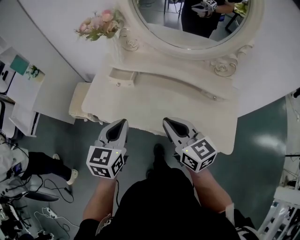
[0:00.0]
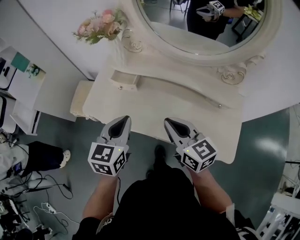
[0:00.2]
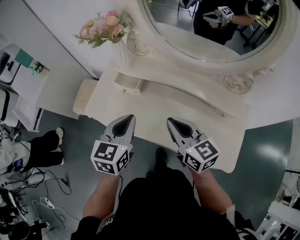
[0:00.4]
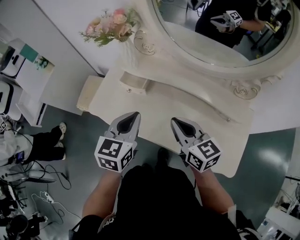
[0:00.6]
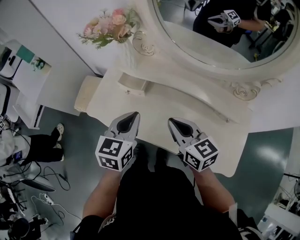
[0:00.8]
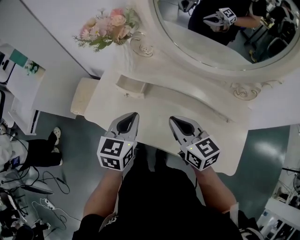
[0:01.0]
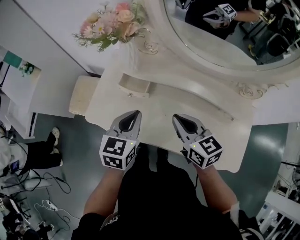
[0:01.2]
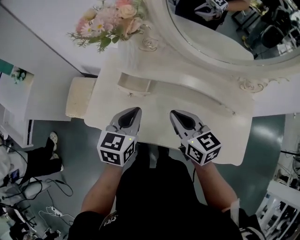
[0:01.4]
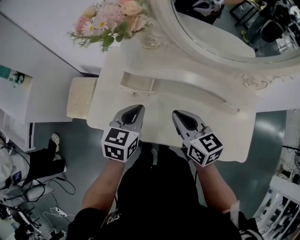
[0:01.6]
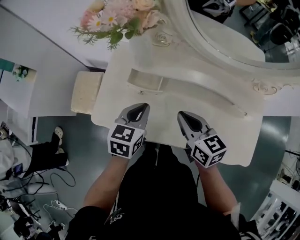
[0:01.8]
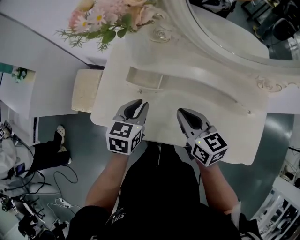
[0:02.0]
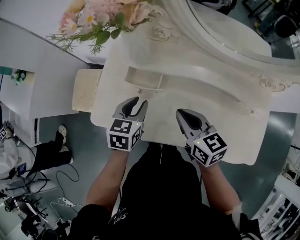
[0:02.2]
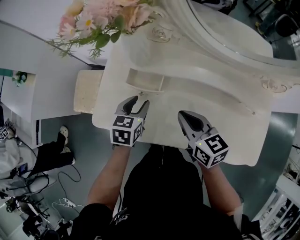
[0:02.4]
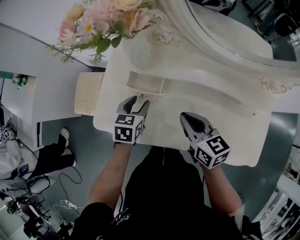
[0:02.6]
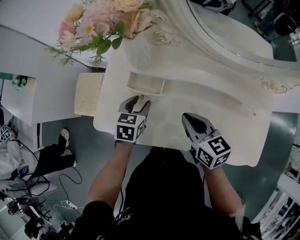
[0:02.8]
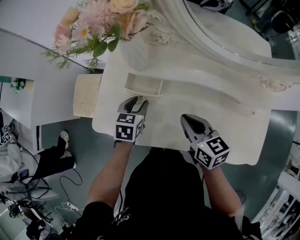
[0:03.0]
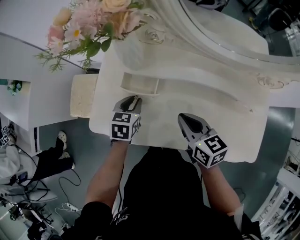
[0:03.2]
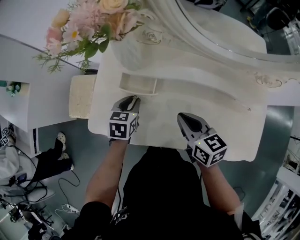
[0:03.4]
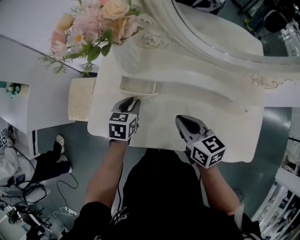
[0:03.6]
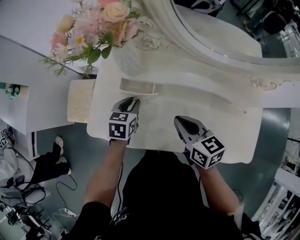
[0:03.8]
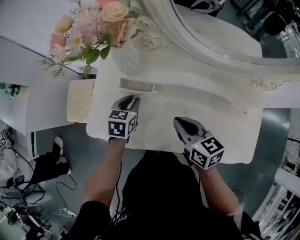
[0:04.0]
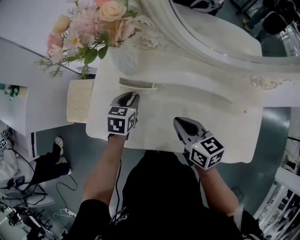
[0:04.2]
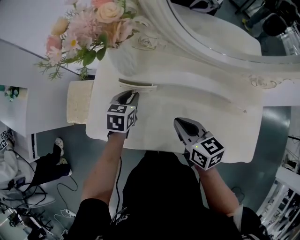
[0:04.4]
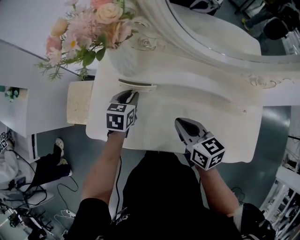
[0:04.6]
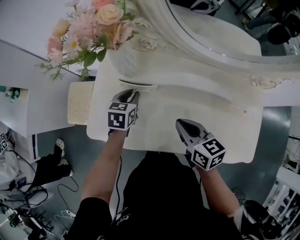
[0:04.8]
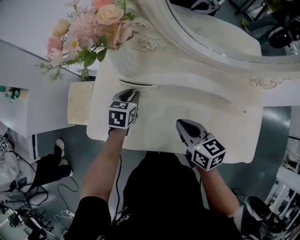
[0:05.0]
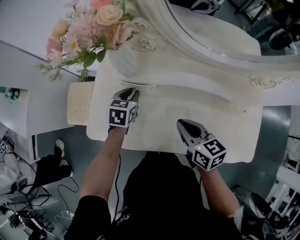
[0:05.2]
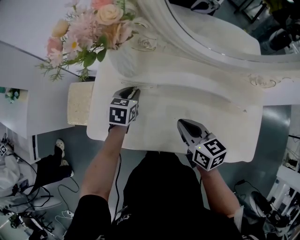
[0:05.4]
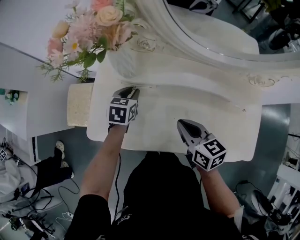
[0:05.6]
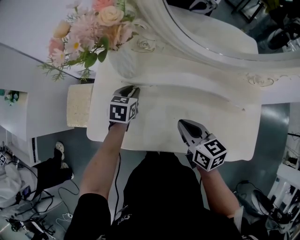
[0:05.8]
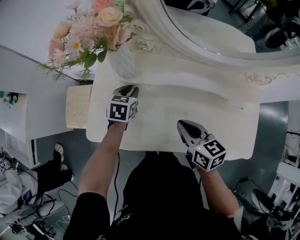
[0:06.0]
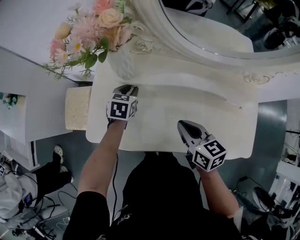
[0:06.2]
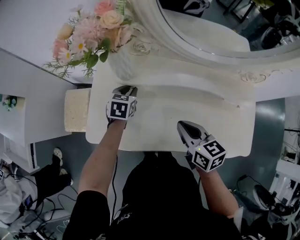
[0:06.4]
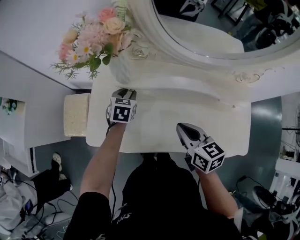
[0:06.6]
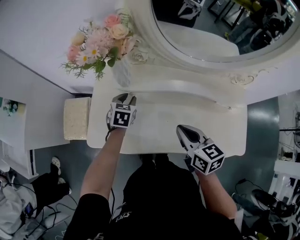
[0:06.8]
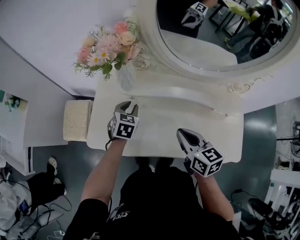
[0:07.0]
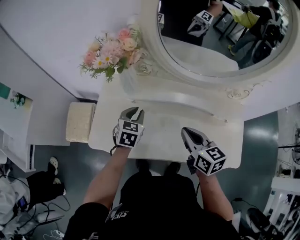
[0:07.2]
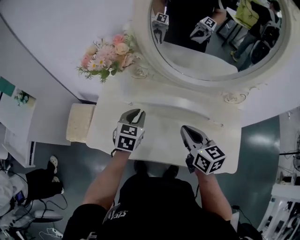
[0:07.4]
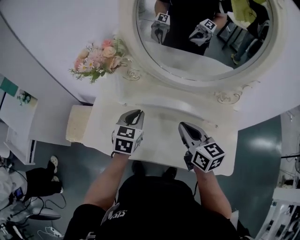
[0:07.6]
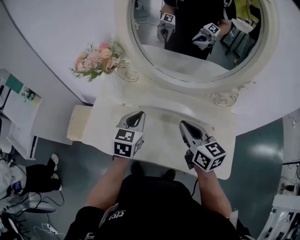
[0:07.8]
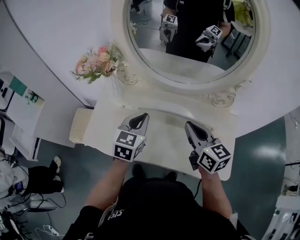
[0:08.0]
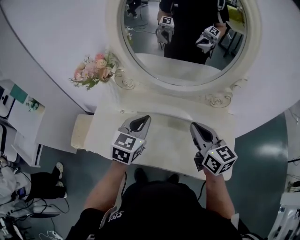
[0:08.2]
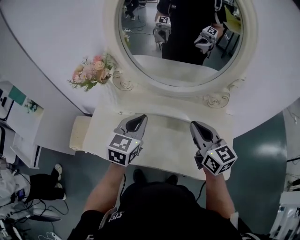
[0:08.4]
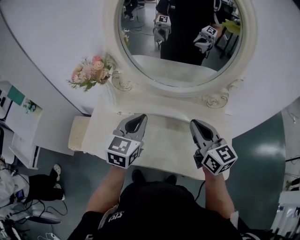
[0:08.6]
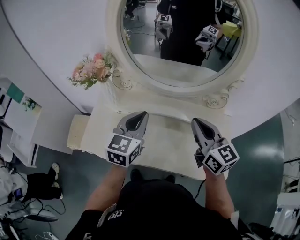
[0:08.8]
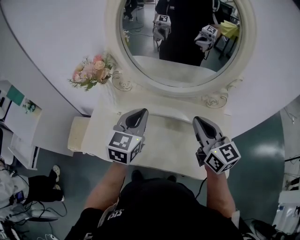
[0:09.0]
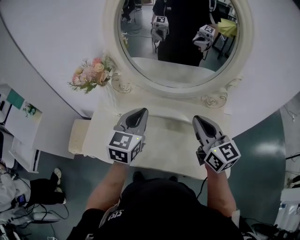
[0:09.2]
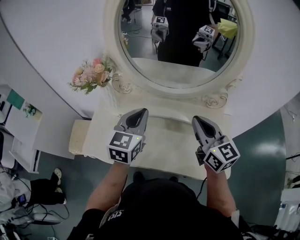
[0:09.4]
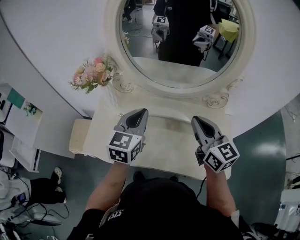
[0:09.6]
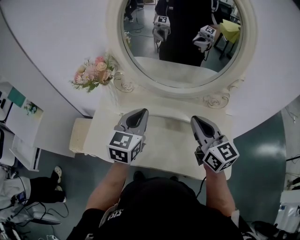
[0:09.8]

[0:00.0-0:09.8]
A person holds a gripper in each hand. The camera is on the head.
0:00.0 to 0:01.4: The left gripper shifts approximately 15 cm forward. The right gripper travels forward and downward by about 20 cm.
0:01.4 to 0:02.8: The left gripper shifts some 15 cm downward and forward, and opens; the right gripper is displaced downward by roughly 5 cm.
0:02.8 to 0:04.2: The left gripper closes.
0:04.2 to 0:05.6: There are only small adjustments of the grippers.
0:05.6 to 0:07.0: The left gripper moves approximately 5 cm, while the right gripper heads upward, covering roughly 5 cm.
0:07.0 to 0:08.4: The right gripper travels to the right and upward by roughly 20 cm, and changes its angle by roughly 20 degrees. Meanwhile the left gripper moves upward, to the right and backward, roughly 30 cm, turns by roughly 20 degrees, and closes up.
0:08.4 to 0:09.8: The grippers stay close to where they were, moving slightly.

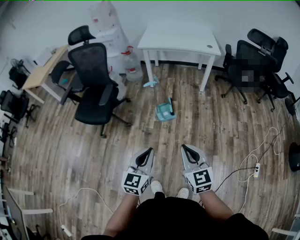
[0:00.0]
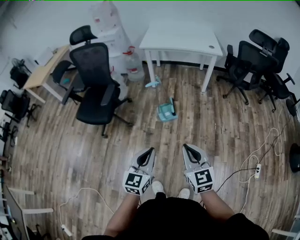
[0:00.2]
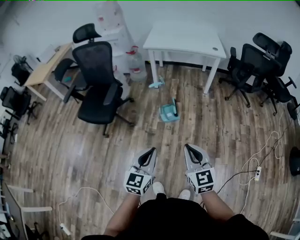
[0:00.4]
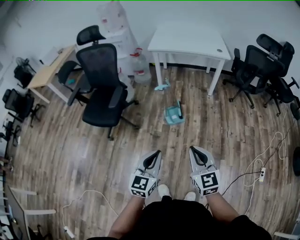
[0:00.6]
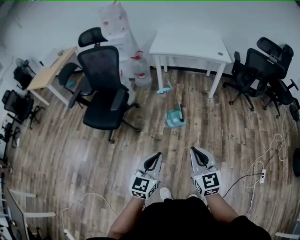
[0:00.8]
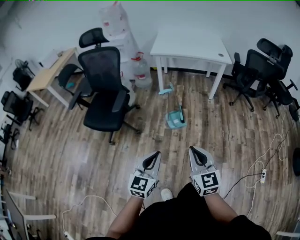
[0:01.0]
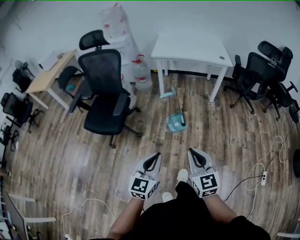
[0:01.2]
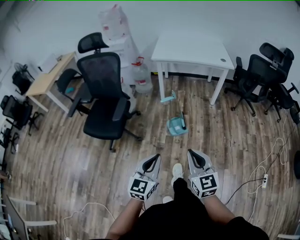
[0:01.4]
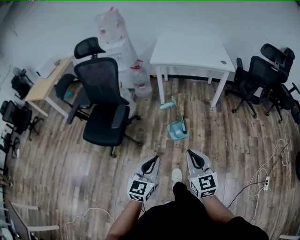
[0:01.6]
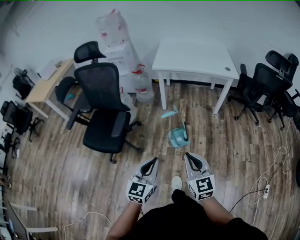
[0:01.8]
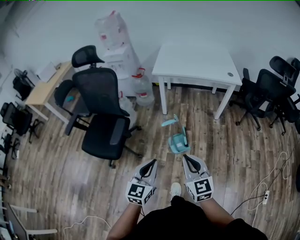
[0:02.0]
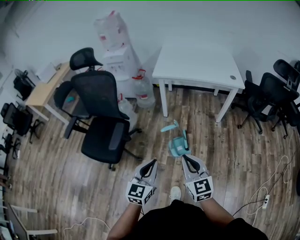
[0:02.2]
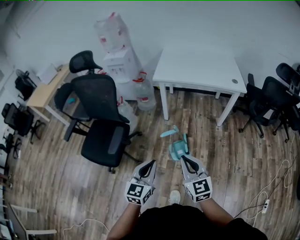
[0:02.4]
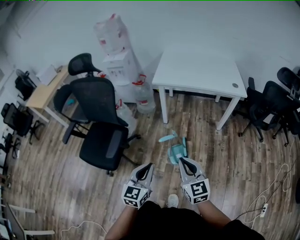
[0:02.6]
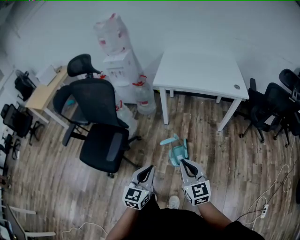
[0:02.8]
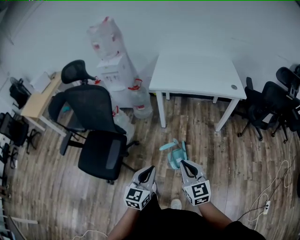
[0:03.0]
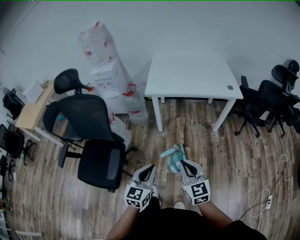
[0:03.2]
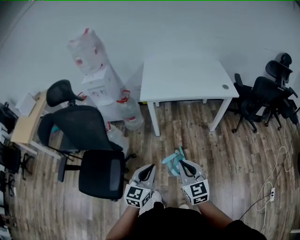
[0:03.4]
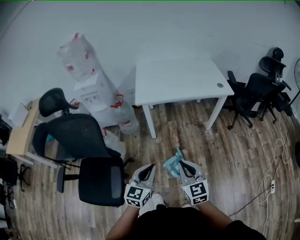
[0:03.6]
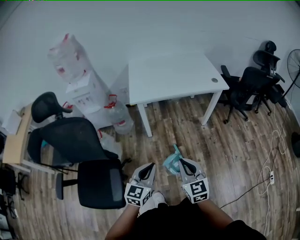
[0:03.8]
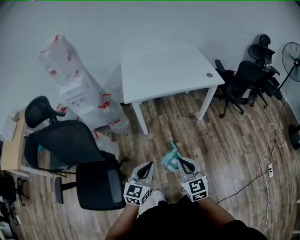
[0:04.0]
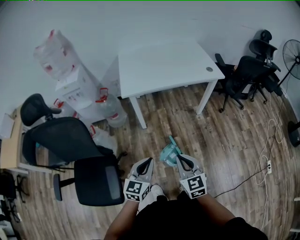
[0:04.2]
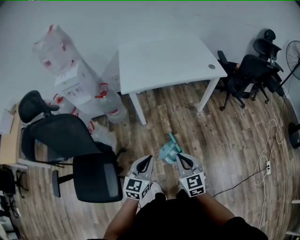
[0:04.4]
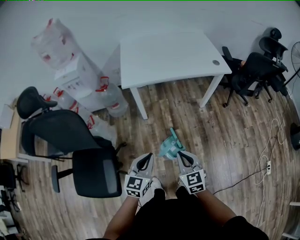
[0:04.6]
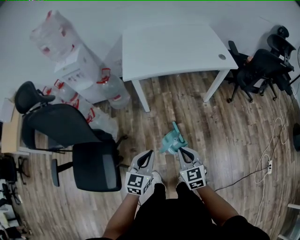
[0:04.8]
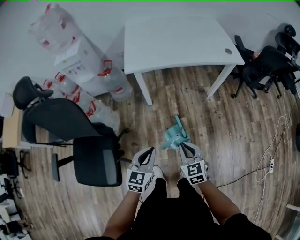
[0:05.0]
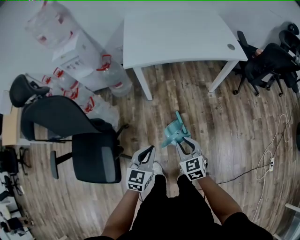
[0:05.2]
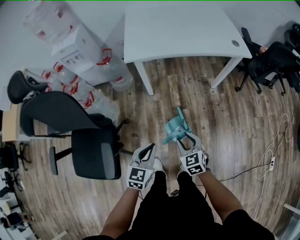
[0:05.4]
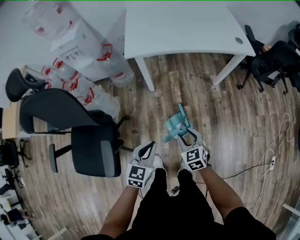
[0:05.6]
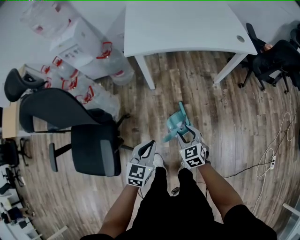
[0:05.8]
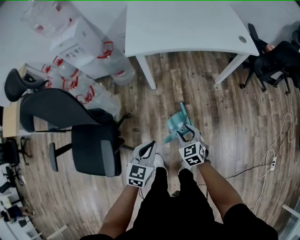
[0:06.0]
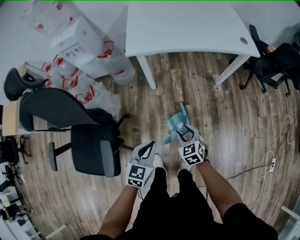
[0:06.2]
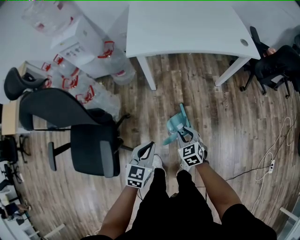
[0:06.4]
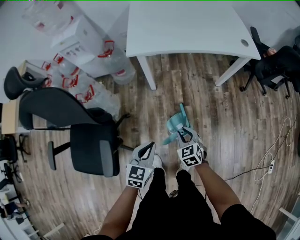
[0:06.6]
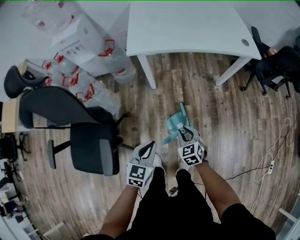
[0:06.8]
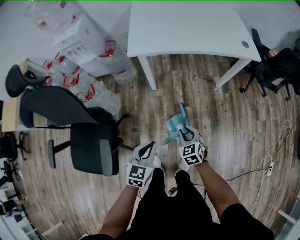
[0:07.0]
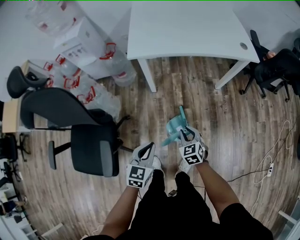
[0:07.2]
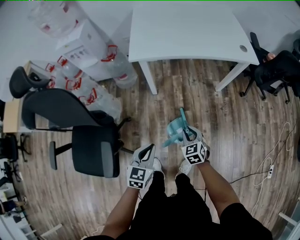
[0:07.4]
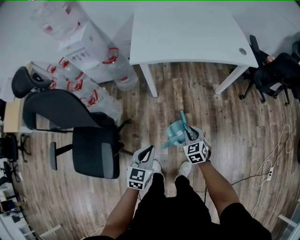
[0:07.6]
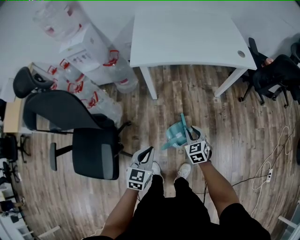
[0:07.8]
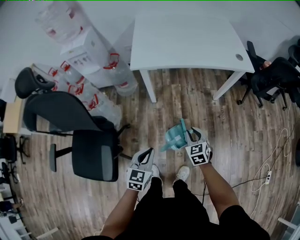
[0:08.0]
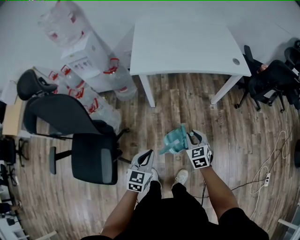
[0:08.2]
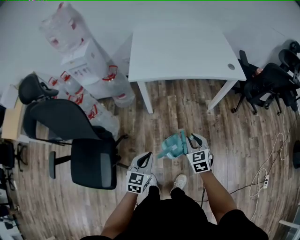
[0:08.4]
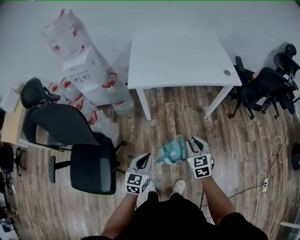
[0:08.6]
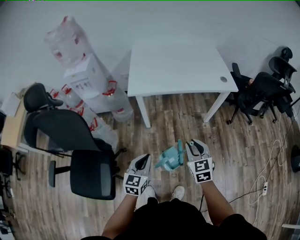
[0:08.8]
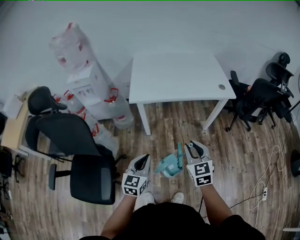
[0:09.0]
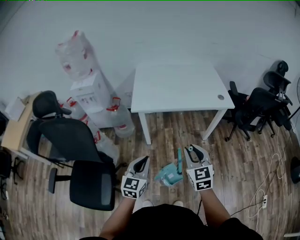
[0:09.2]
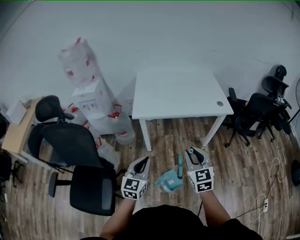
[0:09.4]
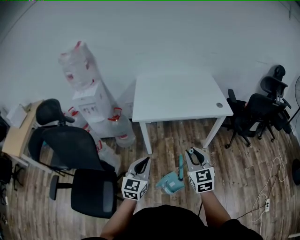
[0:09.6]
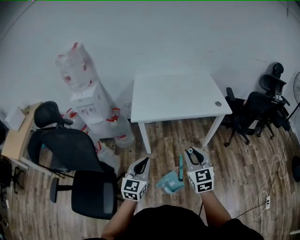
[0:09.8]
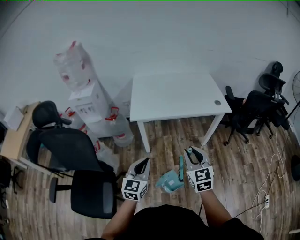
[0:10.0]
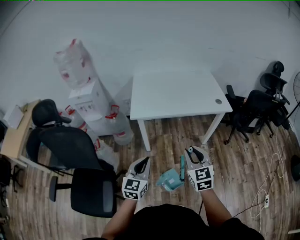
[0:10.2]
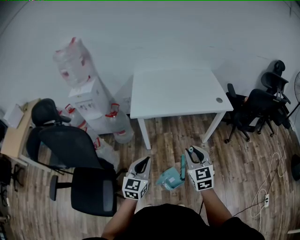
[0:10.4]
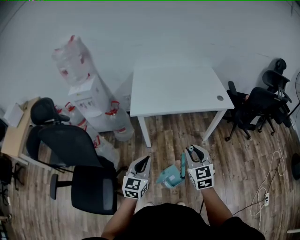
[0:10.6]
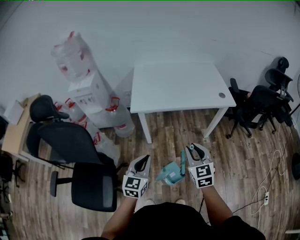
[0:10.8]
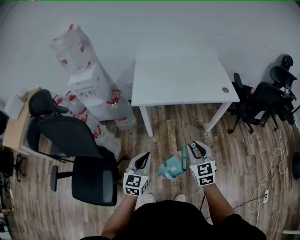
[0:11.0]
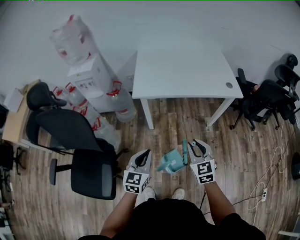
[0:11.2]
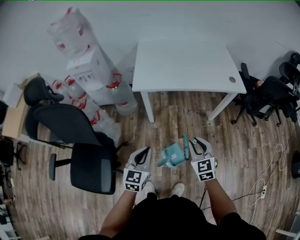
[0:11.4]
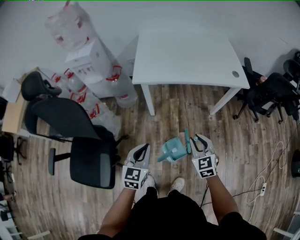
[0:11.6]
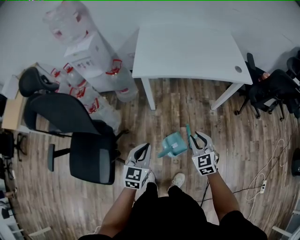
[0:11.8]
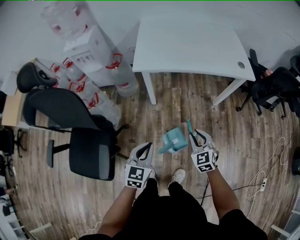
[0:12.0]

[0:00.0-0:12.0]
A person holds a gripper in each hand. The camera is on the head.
0:00.0 to 0:01.6: Both grippers move forward and to the left, about 15 cm.
0:01.6 to 0:03.0: The grippers both shift forward by approximately 25 cm.
0:03.0 to 0:04.4: The left gripper moves forward, some 15 cm, and turns by about 20 degrees. The right gripper goes some 15 cm forward, to the left and downward, and swivels some 20 degrees.
0:04.4 to 0:06.0: The left gripper heads downward, covering approximately 10 cm. Meanwhile the right gripper travels downward and forward by approximately 20 cm, rotates roughly 20 degrees, and opens.
0:06.0 to 0:07.6: The right gripper moves roughly 5 cm, and closes.
0:07.6 to 0:09.0: The right gripper is displaced upward by about 25 cm, and swivels approximately 20 degrees; the left gripper moves upward and forward, roughly 10 cm.
0:09.0 to 0:10.4: The left gripper moves some 5 cm.
0:10.4 to 0:12.0: The left gripper is displaced downward by about 10 cm. The right gripper travels downward by roughly 20 cm, and turns by approximately 20 degrees.

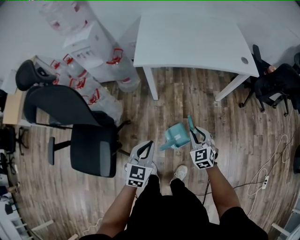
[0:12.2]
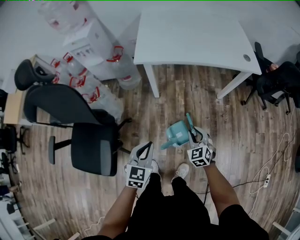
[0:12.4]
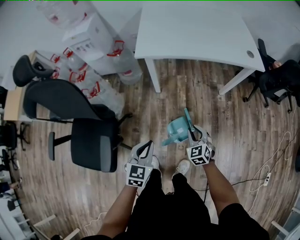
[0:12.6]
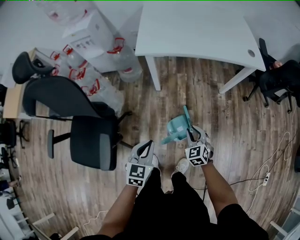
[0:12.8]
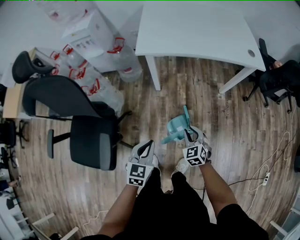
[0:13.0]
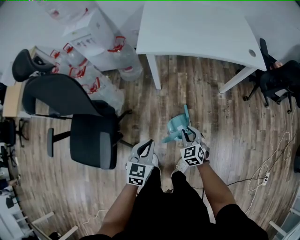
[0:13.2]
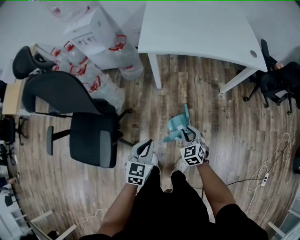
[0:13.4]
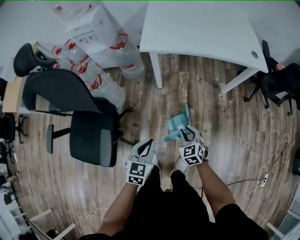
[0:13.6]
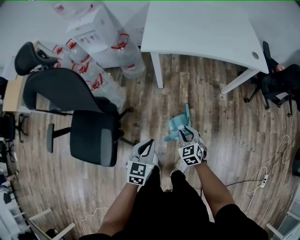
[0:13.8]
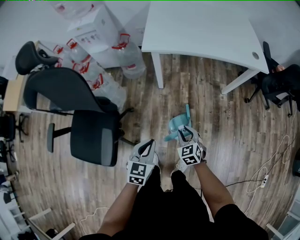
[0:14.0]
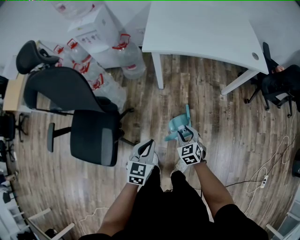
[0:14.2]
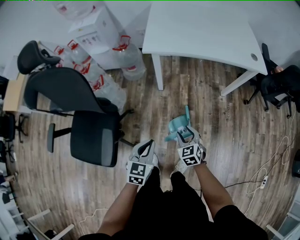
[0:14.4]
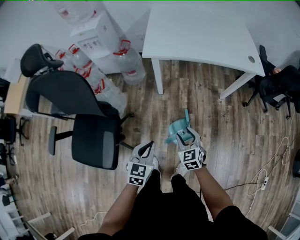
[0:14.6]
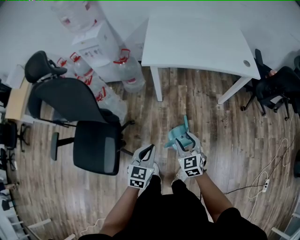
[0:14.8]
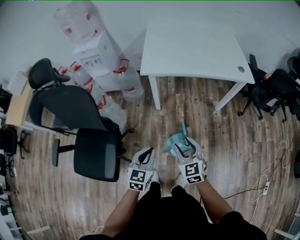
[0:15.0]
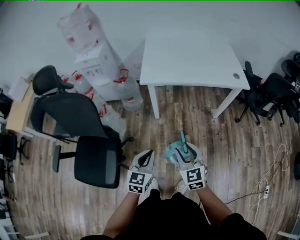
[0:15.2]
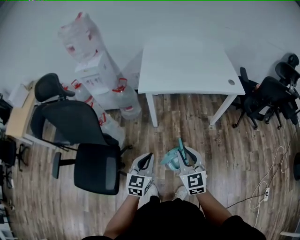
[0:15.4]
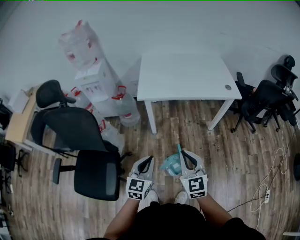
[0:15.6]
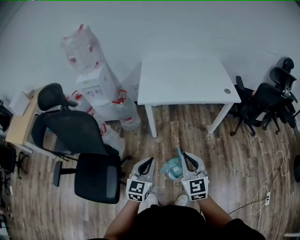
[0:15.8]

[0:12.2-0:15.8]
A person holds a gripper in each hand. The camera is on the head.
0:12.2 to 0:14.0: The right gripper heads to the left and downward, covering approximately 10 cm. Meanwhile the left gripper ends up some 5 cm from where it was.
0:14.0 to 0:15.8: The left gripper travels upward by about 15 cm; the right gripper shifts about 30 cm upward, tips its fingers upward by roughly 30 degrees, and closes its fingers.
